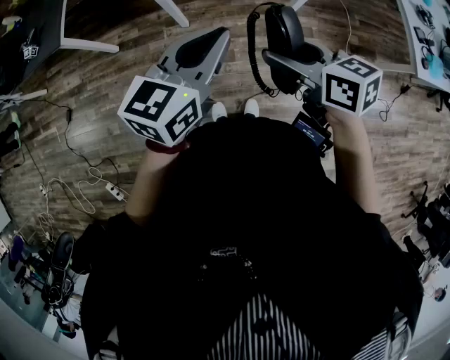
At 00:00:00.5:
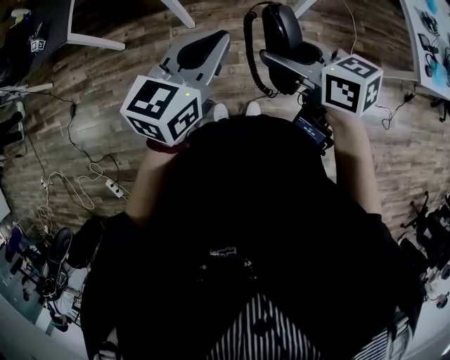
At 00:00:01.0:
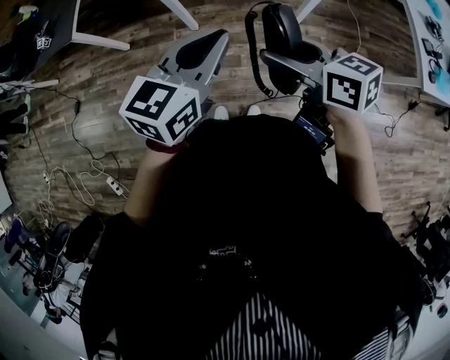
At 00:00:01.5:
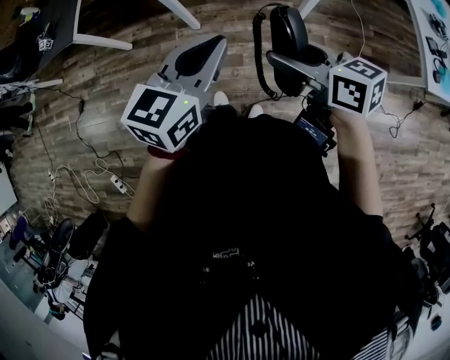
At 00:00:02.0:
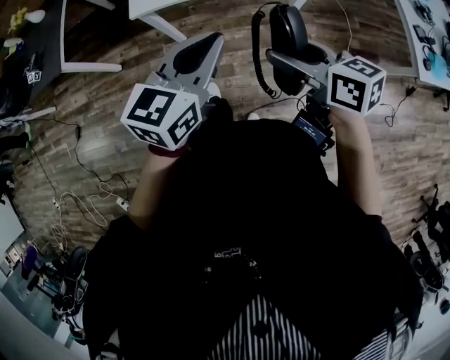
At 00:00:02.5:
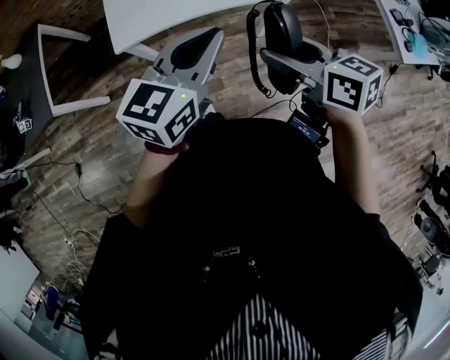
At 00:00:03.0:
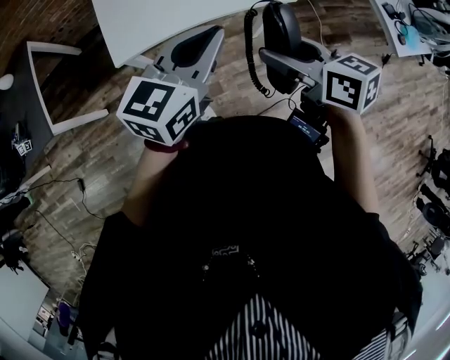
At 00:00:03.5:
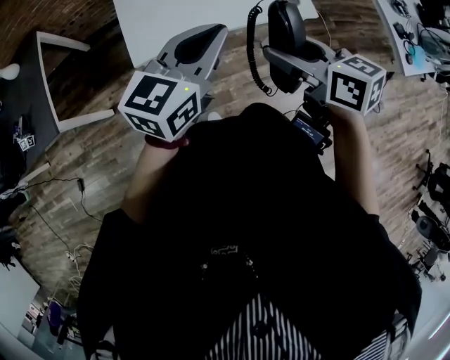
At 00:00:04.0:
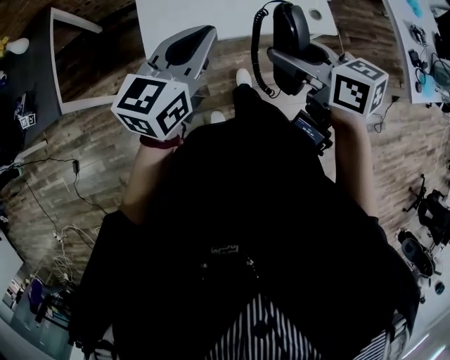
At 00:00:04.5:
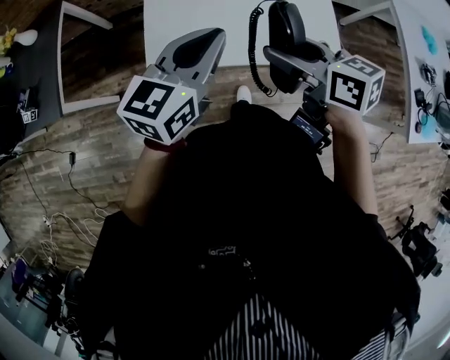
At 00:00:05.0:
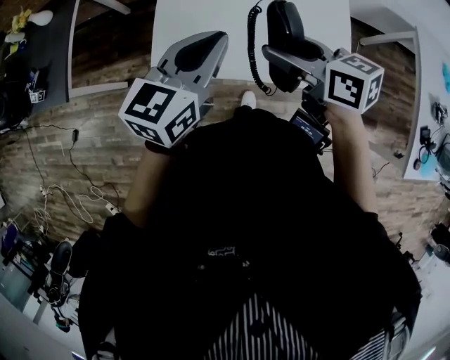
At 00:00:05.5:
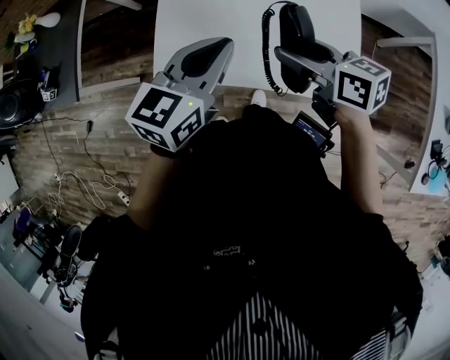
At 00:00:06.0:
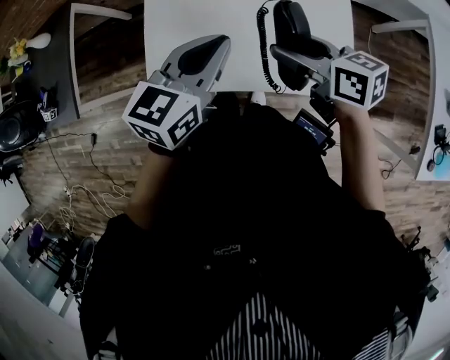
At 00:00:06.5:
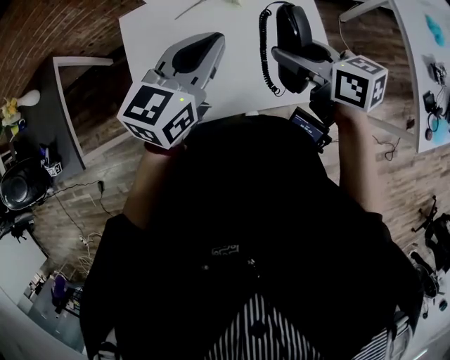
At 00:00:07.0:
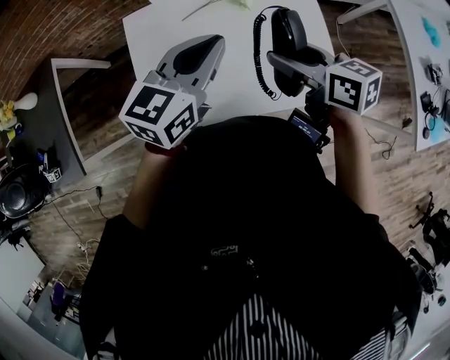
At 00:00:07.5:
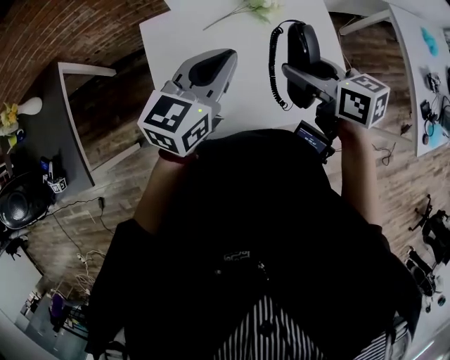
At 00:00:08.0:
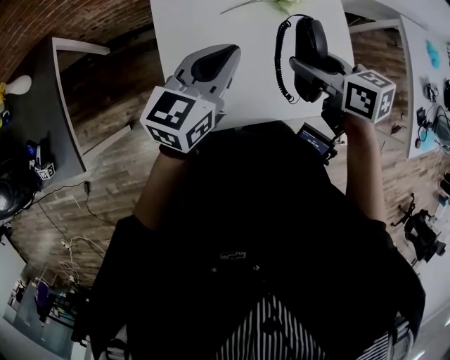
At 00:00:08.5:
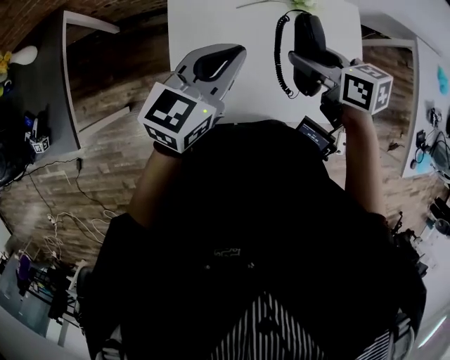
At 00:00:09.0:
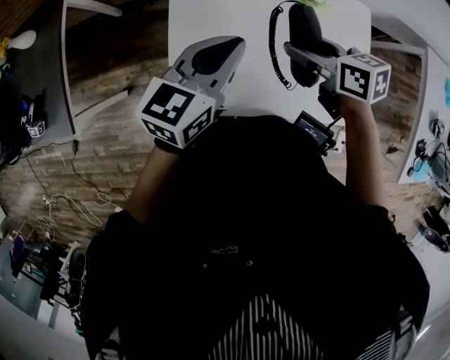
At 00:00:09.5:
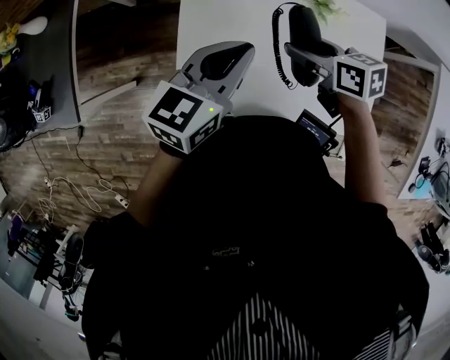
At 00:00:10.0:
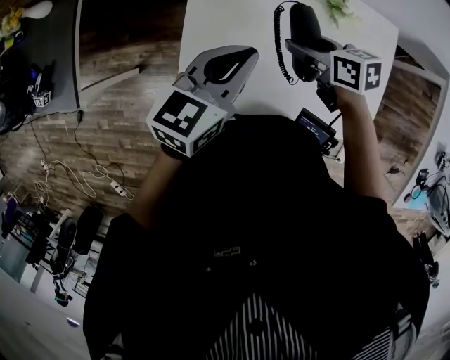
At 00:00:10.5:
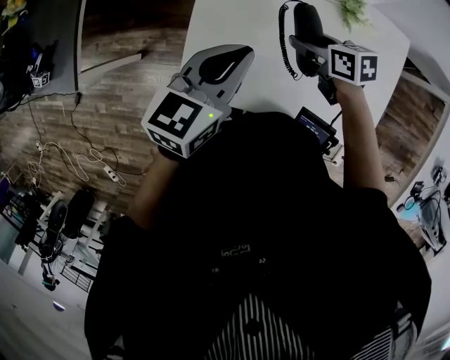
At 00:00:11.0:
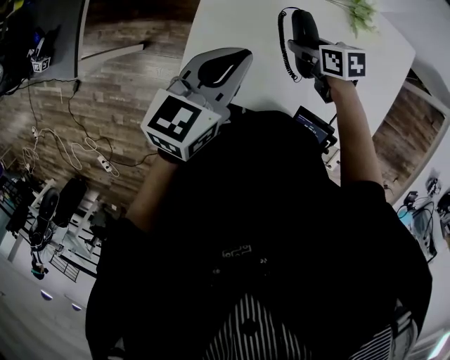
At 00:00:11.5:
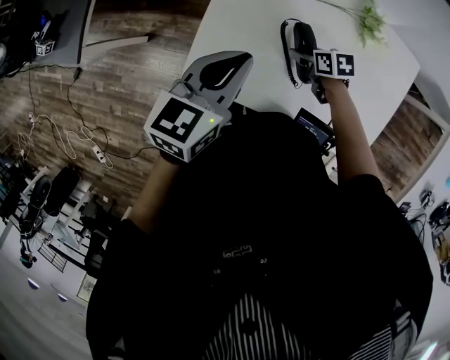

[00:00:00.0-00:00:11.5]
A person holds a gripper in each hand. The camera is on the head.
00:00:00.0 to 00:00:02.0: The right gripper shifts some 10 cm to the right and forward. Meanwhile the left gripper is displaced forward and to the right by some 10 cm.
00:00:02.0 to 00:00:04.0: The two grippers go some 25 cm forward and to the left.
00:00:04.0 to 00:00:06.0: Both grippers travel together forward and to the right, some 25 cm.
00:00:06.0 to 00:00:07.5: Both grippers move forward and to the left, approximately 10 cm.
00:00:07.5 to 00:00:09.5: The right gripper heads downward, forward and to the left, covering about 15 cm, and rotates approximately 20 degrees. Meanwhile the left gripper goes some 5 cm to the left.
00:00:09.5 to 00:00:11.5: The left gripper shifts by approximately 5 cm; the right gripper moves downward, approximately 20 cm, and swivels approximately 20 degrees.

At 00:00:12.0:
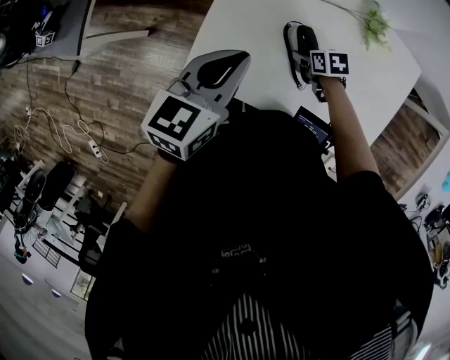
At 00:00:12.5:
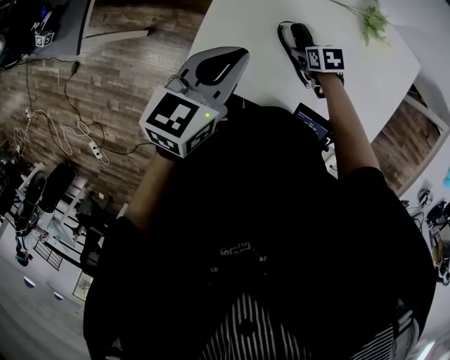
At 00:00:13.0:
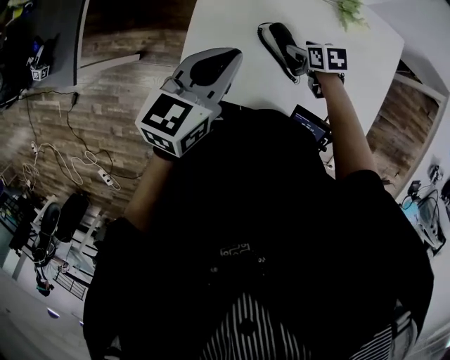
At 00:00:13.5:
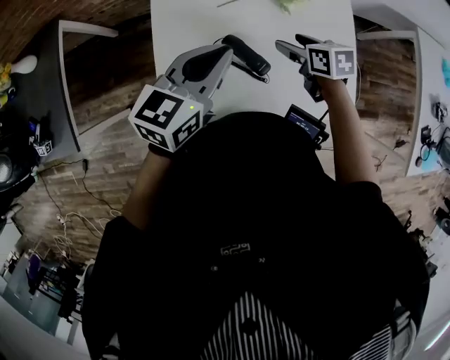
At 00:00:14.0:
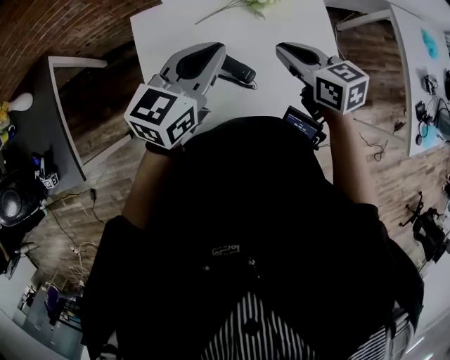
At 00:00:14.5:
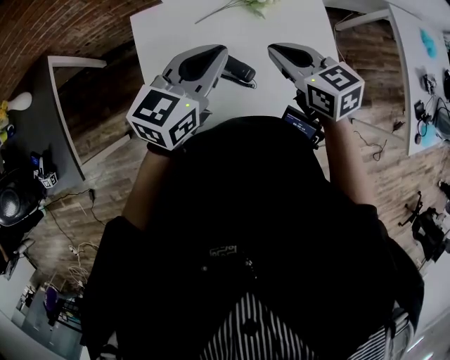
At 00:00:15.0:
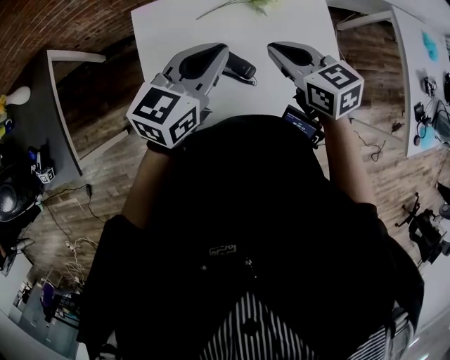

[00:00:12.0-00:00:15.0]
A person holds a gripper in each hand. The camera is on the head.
00:00:12.0 to 00:00:13.5: The right gripper goes about 20 cm upward, and swivels some 30 degrees. Meanwhile the left gripper ends up about 10 cm from where it was, and swivels approximately 30 degrees.
00:00:13.5 to 00:00:15.0: The right gripper travels upward by roughly 10 cm, changes its angle by about 20 degrees, and closes up.

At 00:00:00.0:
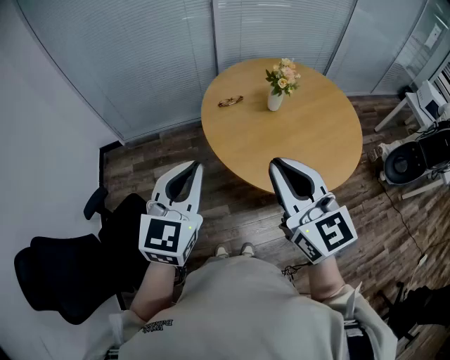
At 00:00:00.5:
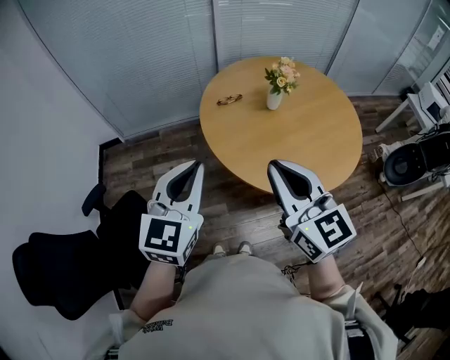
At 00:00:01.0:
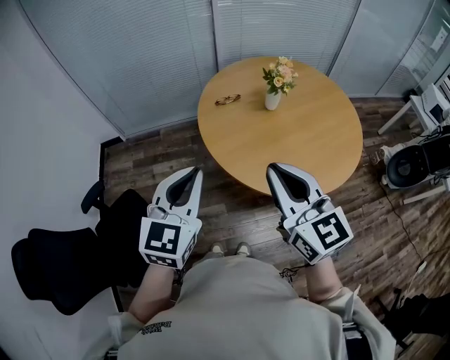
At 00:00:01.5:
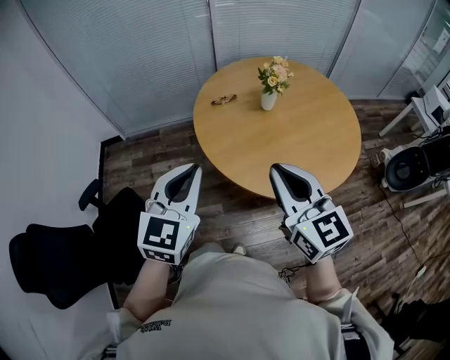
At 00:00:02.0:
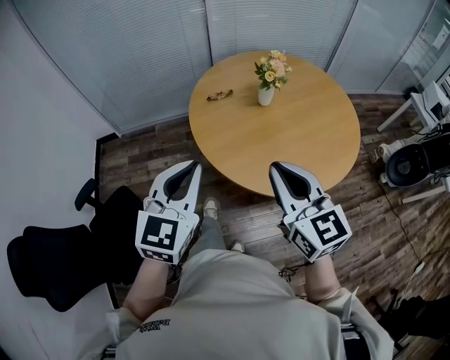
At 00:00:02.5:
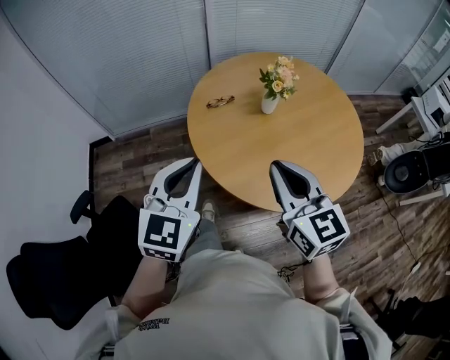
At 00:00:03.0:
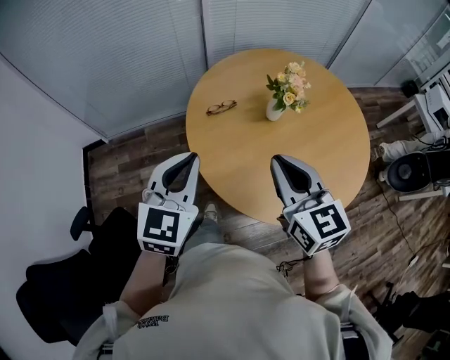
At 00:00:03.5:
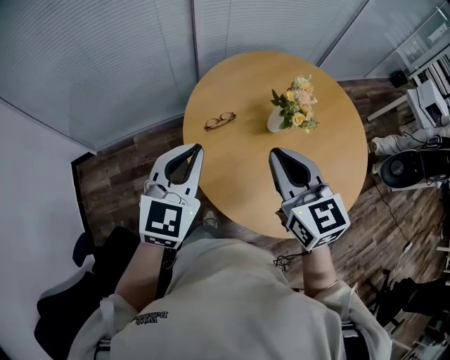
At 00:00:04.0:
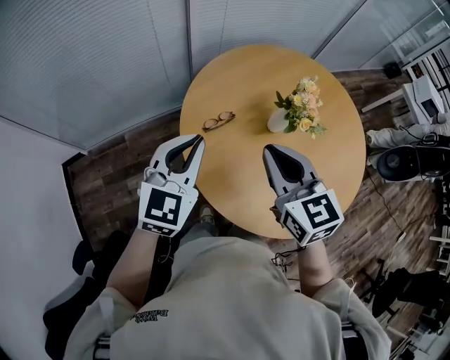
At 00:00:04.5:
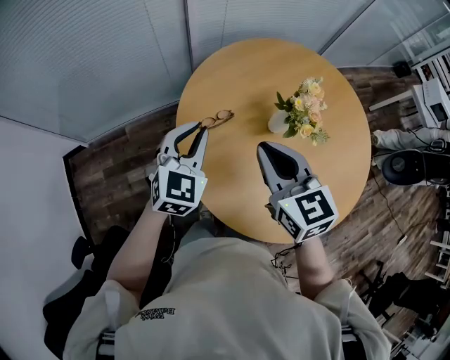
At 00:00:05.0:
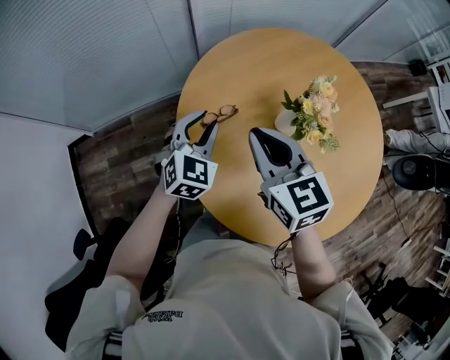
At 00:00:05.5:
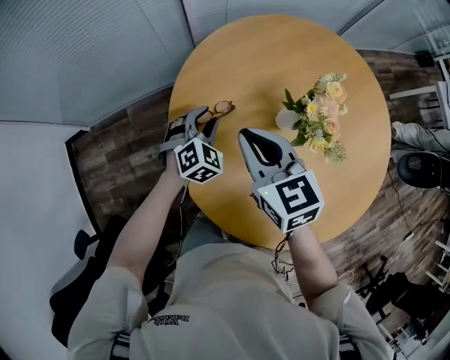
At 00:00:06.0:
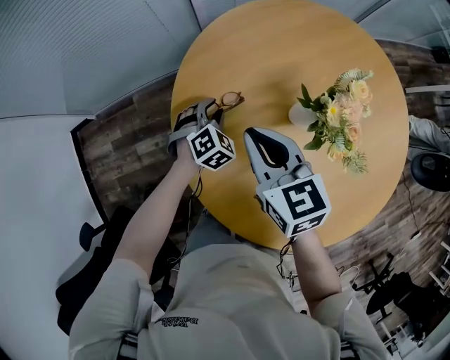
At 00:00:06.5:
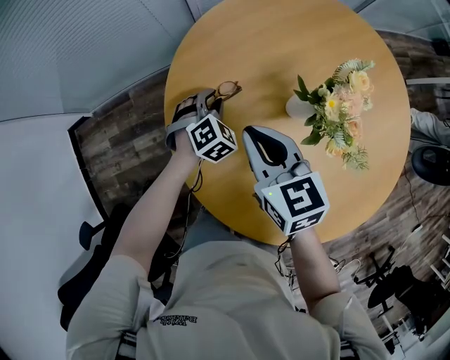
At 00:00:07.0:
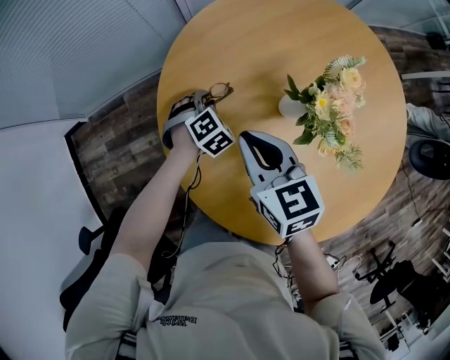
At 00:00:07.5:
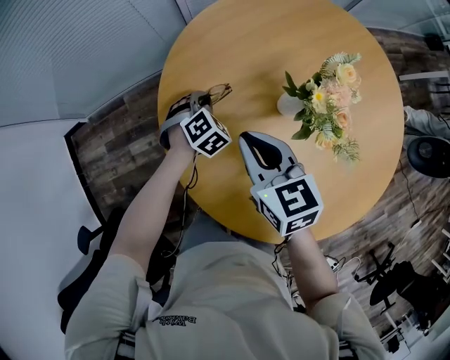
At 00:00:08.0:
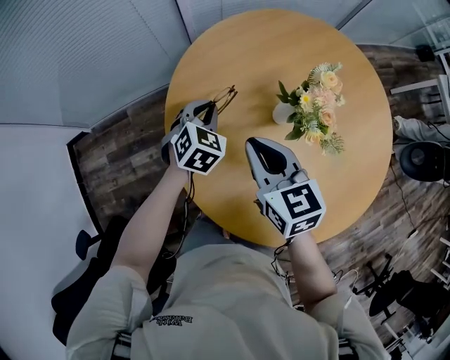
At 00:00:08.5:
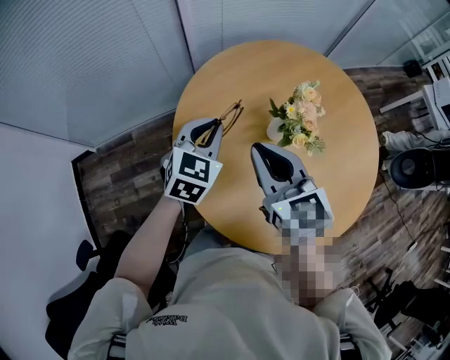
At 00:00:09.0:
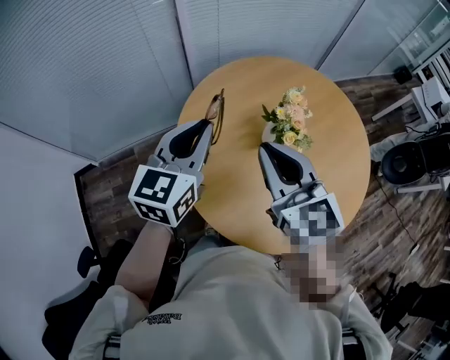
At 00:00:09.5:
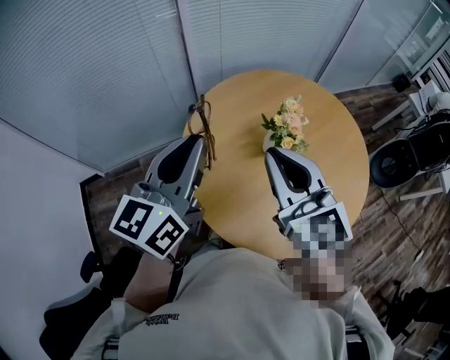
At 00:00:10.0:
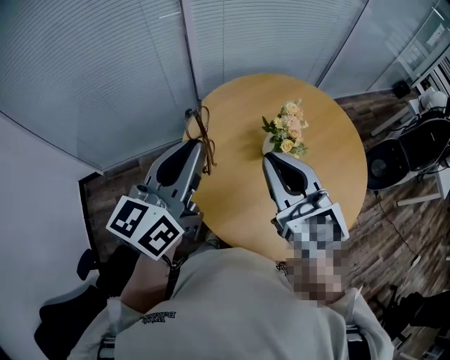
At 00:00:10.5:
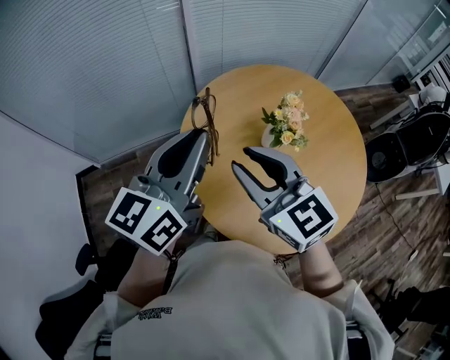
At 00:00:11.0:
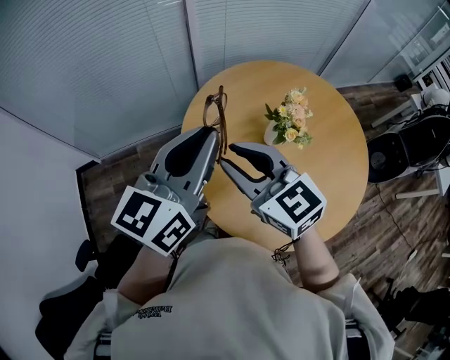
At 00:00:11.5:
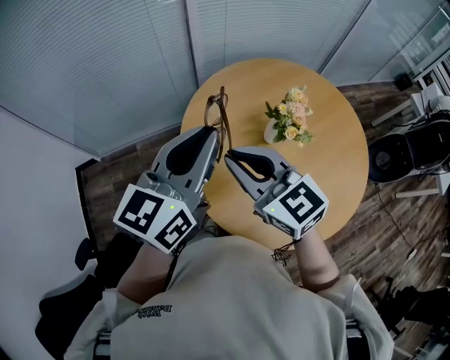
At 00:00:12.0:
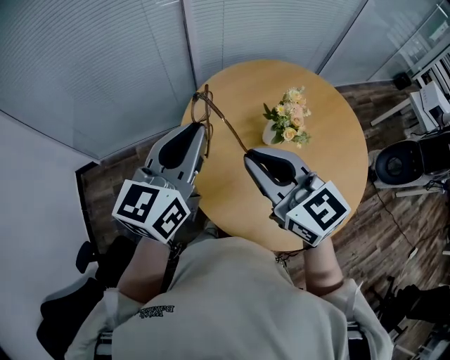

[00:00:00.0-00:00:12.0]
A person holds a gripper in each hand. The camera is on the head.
00:00:00.0 to 00:00:02.0: The left gripper heads to the right, covering approximately 10 cm. Meanwhile the right gripper shifts some 10 cm to the right and downward.
00:00:02.0 to 00:00:04.0: Both grippers move forward, roughly 35 cm.
00:00:04.0 to 00:00:06.0: The left gripper shifts approximately 35 cm downward and forward, tilts its fingers roughly 40 degrees downward, and opens its fingers; the right gripper shifts approximately 20 cm downward and forward.
00:00:06.0 to 00:00:08.0: The left gripper shifts some 10 cm upward, and closes. Meanwhile the right gripper moves approximately 5 cm.
00:00:08.0 to 00:00:10.0: The right gripper is displaced upward by some 20 cm, and rotates roughly 30 degrees; the left gripper is displaced upward and backward by some 40 cm, and tips its fingers upward by some 50 degrees.
